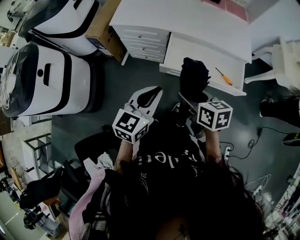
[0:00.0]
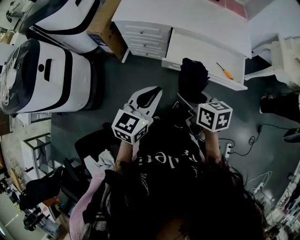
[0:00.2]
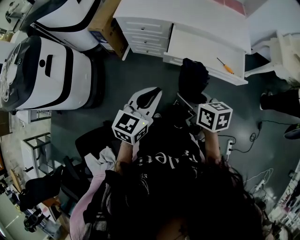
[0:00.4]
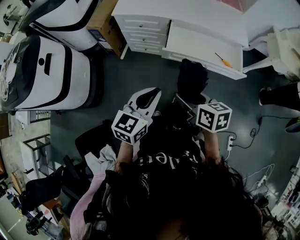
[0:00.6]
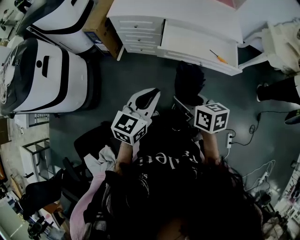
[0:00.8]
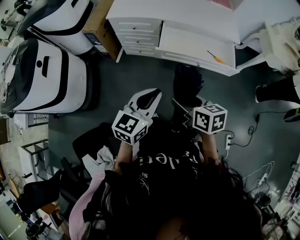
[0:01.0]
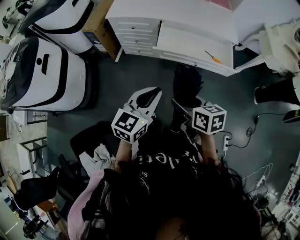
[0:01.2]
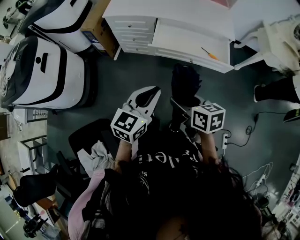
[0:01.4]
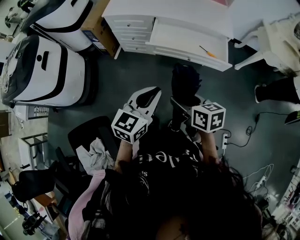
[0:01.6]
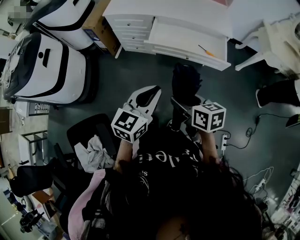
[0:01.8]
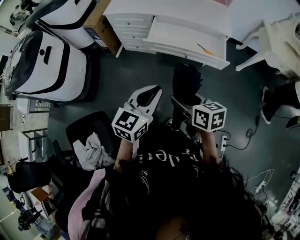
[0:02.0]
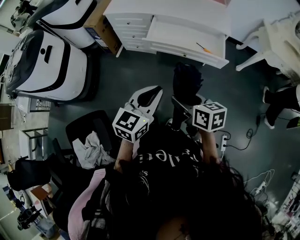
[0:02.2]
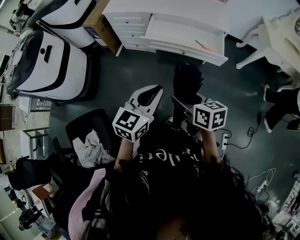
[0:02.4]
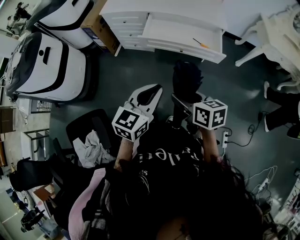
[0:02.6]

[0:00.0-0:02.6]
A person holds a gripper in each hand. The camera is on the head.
0:00.0 to 0:01.2: The grippers both shift backward by approximately 15 cm.
0:01.2 to 0:02.6: The two grippers go some 15 cm to the right and backward.

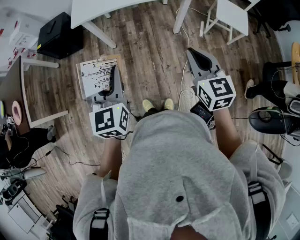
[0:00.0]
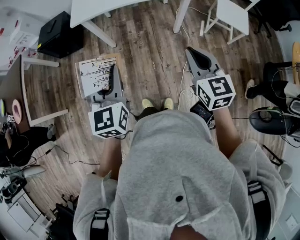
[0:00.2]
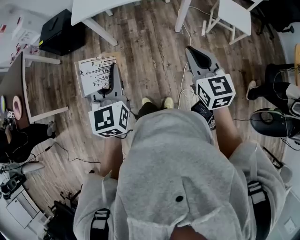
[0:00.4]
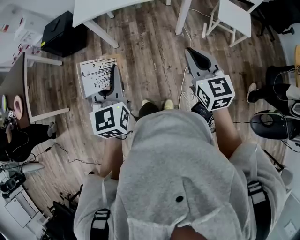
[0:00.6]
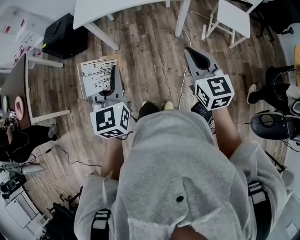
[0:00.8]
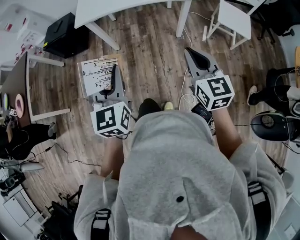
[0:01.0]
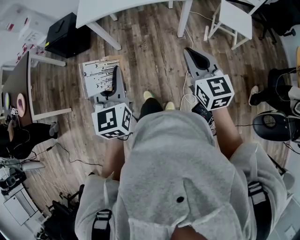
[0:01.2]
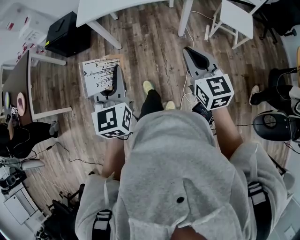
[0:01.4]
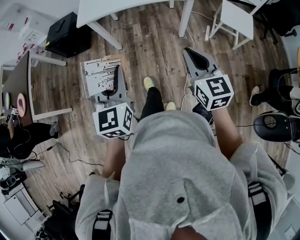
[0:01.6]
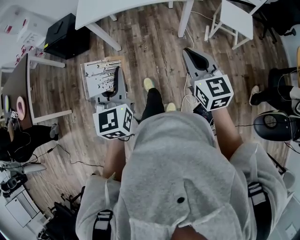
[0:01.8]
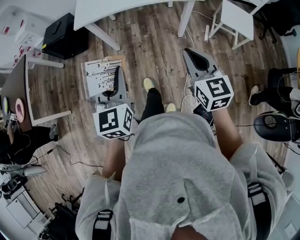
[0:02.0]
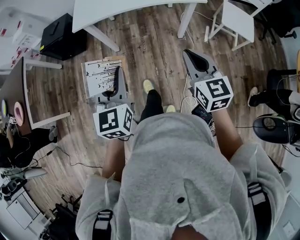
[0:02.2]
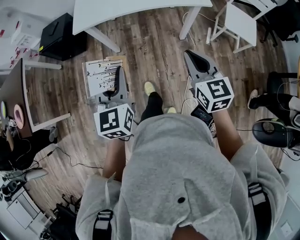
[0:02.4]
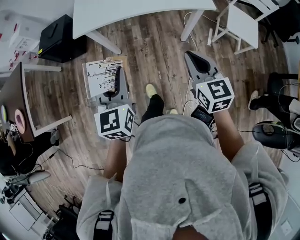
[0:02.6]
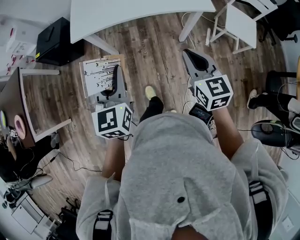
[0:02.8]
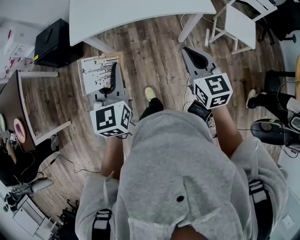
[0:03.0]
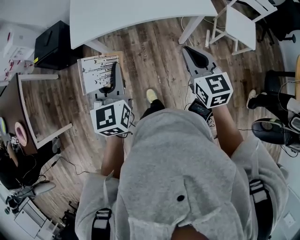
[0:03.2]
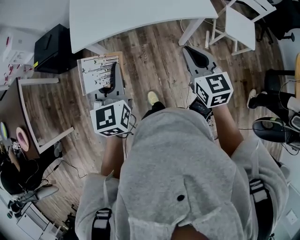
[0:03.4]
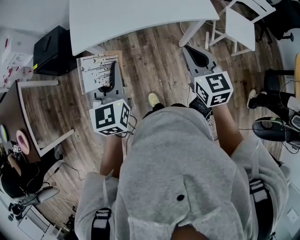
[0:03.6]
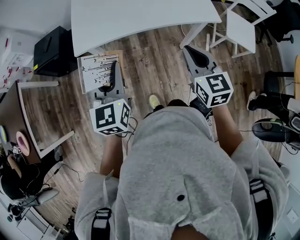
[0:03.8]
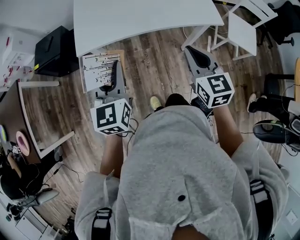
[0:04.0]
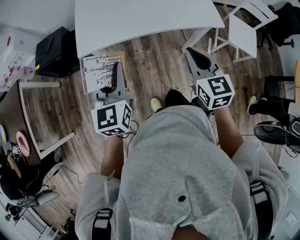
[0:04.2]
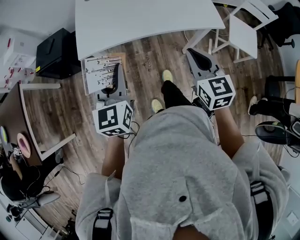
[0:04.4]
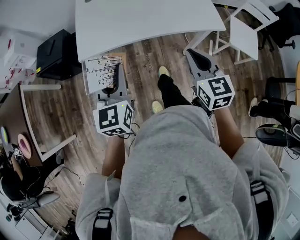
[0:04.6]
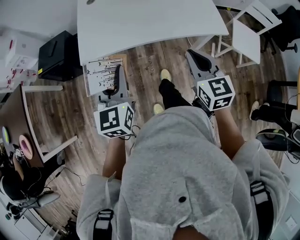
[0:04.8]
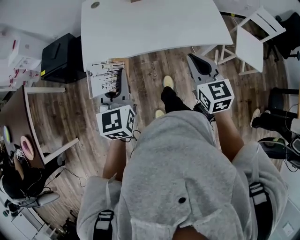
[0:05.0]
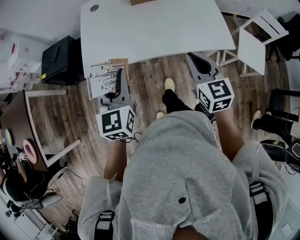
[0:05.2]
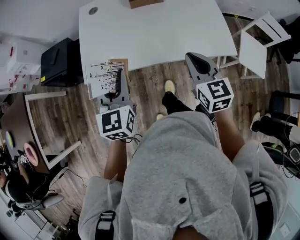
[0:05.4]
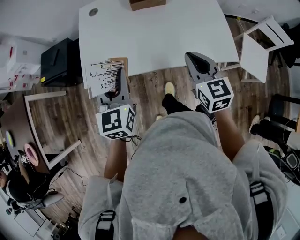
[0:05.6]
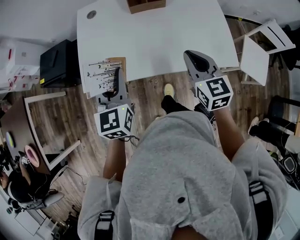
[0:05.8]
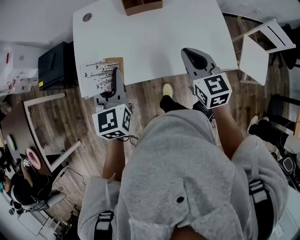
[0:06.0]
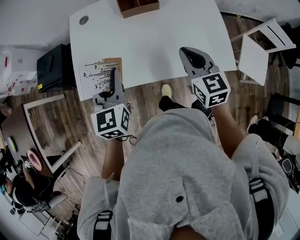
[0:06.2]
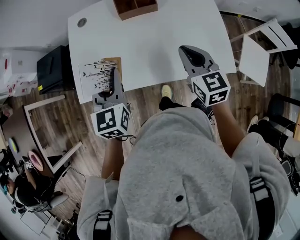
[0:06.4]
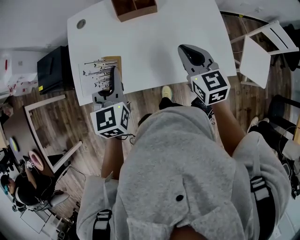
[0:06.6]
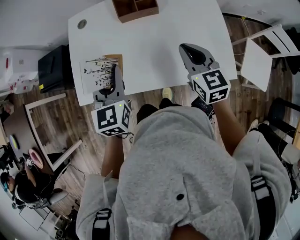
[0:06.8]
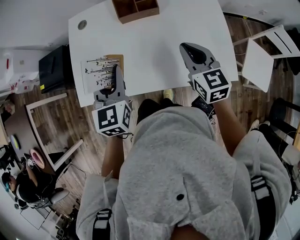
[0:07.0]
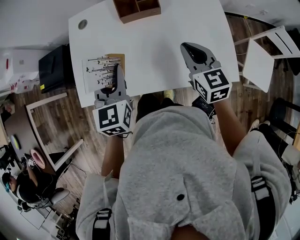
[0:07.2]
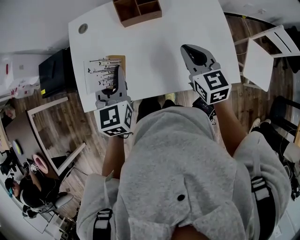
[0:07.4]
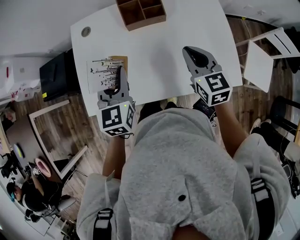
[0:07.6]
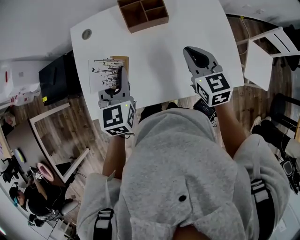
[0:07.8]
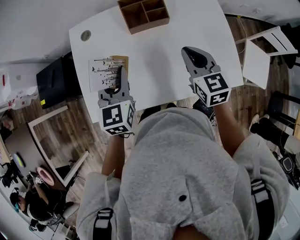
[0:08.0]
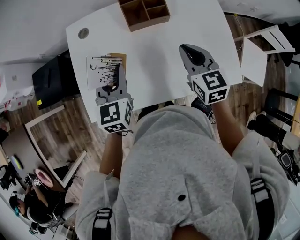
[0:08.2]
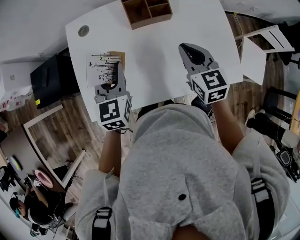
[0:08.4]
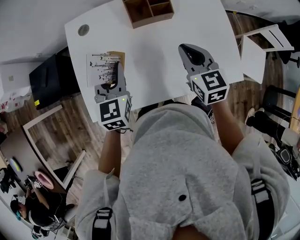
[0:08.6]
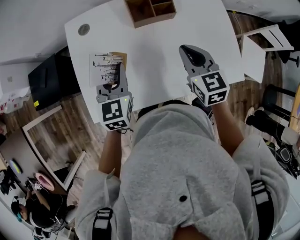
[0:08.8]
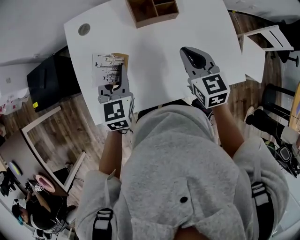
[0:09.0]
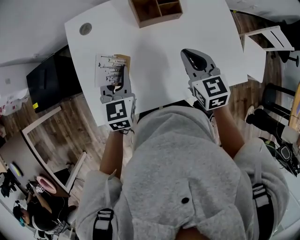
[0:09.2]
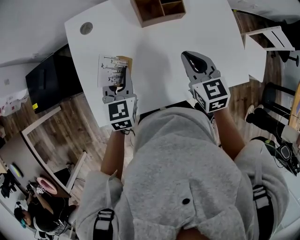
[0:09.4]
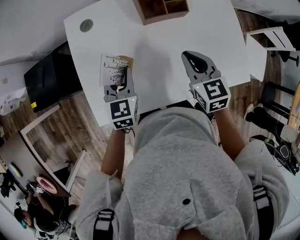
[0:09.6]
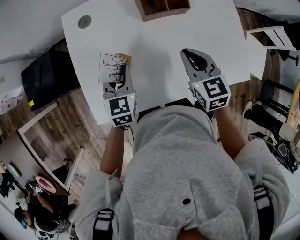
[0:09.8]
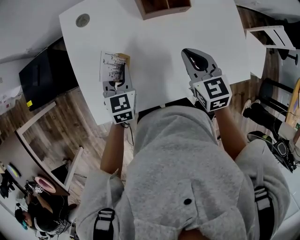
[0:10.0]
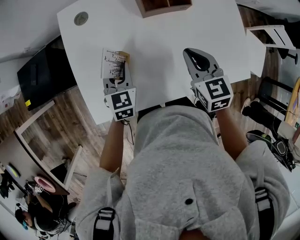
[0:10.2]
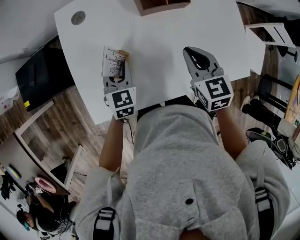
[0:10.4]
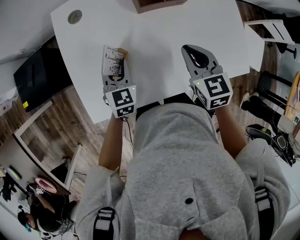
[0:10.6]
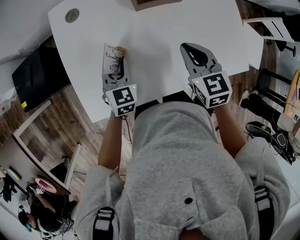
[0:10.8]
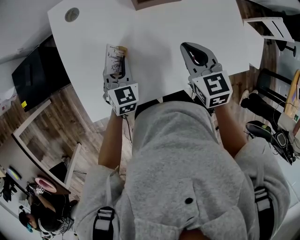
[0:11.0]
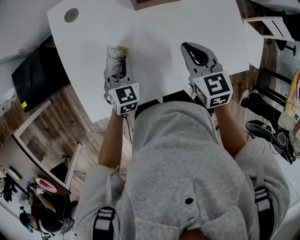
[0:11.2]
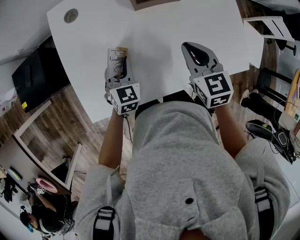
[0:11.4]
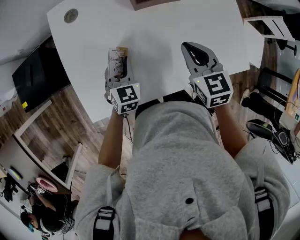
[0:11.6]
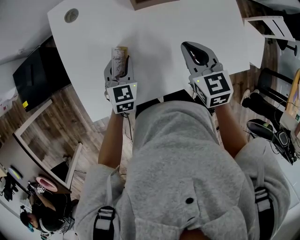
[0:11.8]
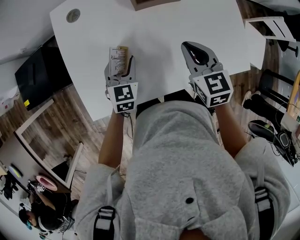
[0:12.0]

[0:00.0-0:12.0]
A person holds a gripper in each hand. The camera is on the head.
0:00.0 to 0:01.6: The left gripper shifts by some 5 cm.
0:01.6 to 0:03.0: The two grippers go approximately 20 cm forward.
0:03.0 to 0:04.4: The left gripper travels forward and to the left by roughly 10 cm. The right gripper shifts approximately 10 cm forward.
0:04.4 to 0:06.0: The grippers both shift forward by roughly 25 cm.
0:06.0 to 0:07.6: The grippers both shift forward by roughly 10 cm.
0:07.6 to 0:09.0: The right gripper is displaced to the left by approximately 10 cm. The left gripper travels to the left and downward by roughly 10 cm.
0:09.0 to 0:10.4: The left gripper goes roughly 10 cm downward. Meanwhile the right gripper ends up about 5 cm from where it was.
0:10.4 to 0:12.0: The left gripper opens its fingers.

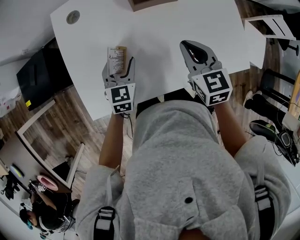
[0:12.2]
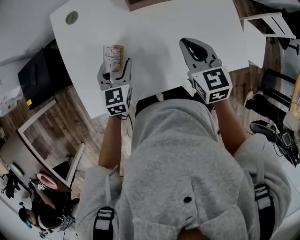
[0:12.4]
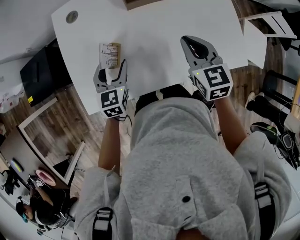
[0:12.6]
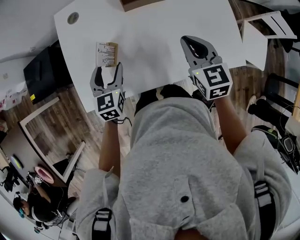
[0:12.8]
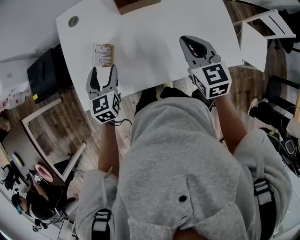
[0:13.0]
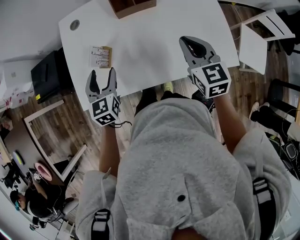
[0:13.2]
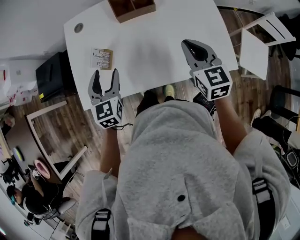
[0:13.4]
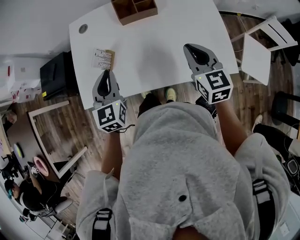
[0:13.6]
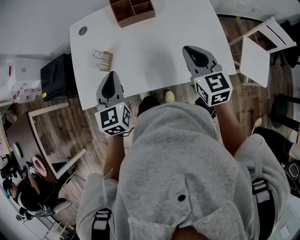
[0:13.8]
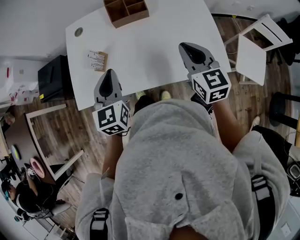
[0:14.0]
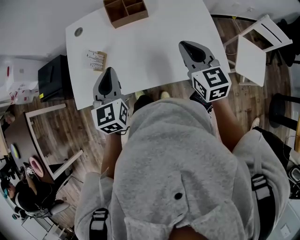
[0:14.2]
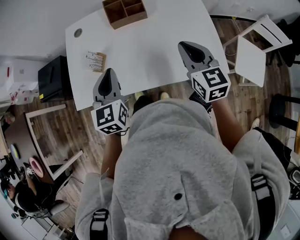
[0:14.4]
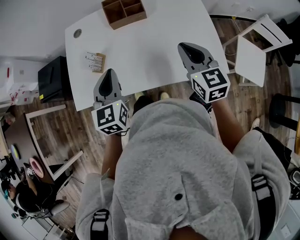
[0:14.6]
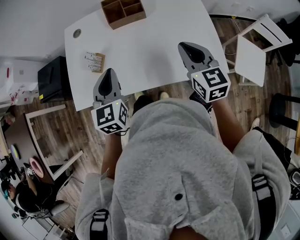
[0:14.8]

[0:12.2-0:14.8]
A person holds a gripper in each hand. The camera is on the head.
0:12.2 to 0:13.4: The right gripper moves to the right, upward and backward, approximately 15 cm. The left gripper heads upward and backward, covering about 15 cm.
0:13.4 to 0:14.8: The left gripper goes roughly 10 cm to the right and upward, and closes its fingers. Meanwhile the right gripper ends up about 5 cm from where it was.

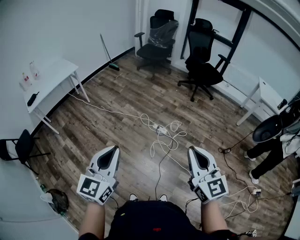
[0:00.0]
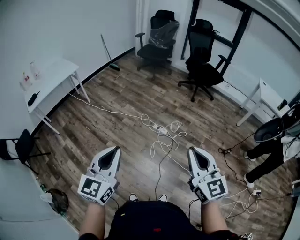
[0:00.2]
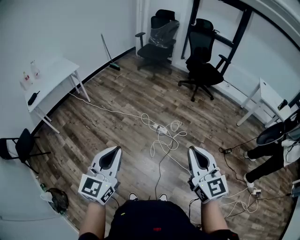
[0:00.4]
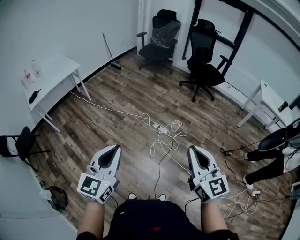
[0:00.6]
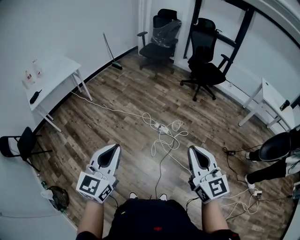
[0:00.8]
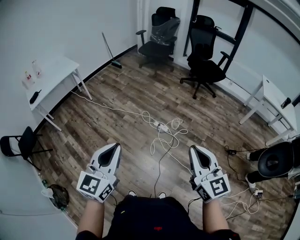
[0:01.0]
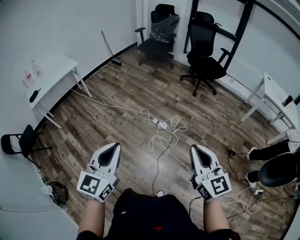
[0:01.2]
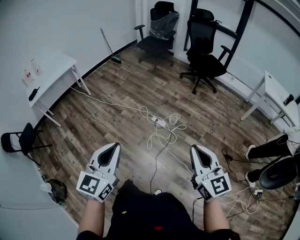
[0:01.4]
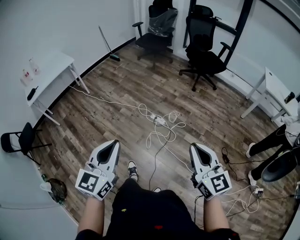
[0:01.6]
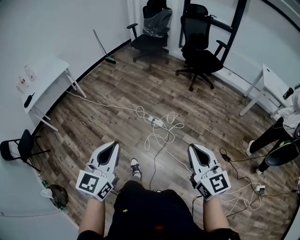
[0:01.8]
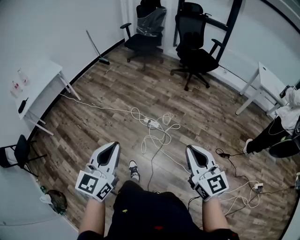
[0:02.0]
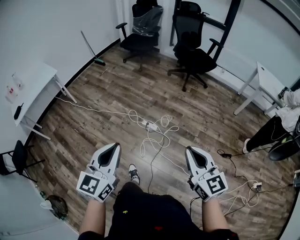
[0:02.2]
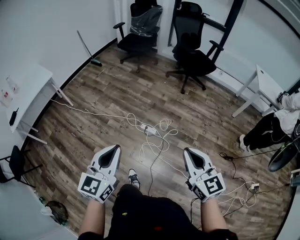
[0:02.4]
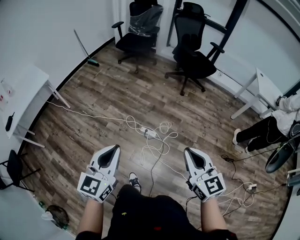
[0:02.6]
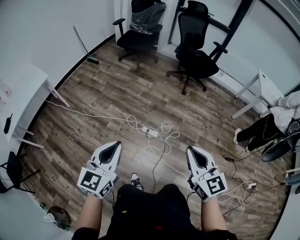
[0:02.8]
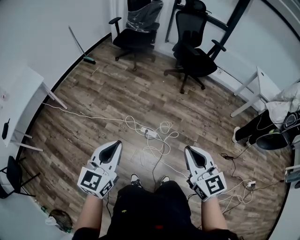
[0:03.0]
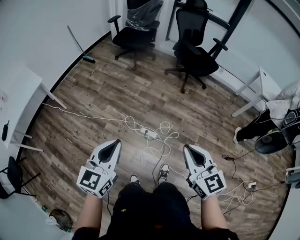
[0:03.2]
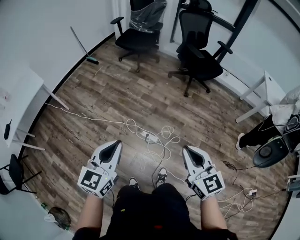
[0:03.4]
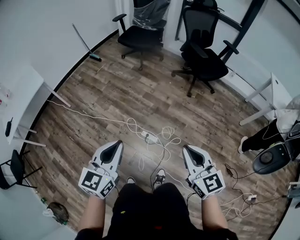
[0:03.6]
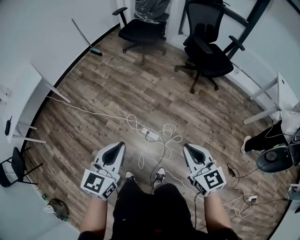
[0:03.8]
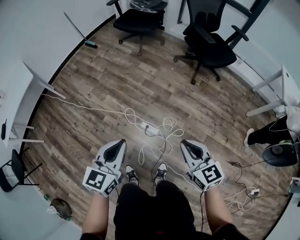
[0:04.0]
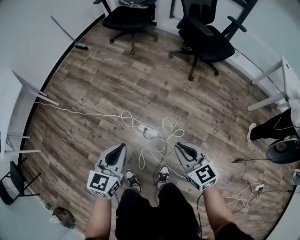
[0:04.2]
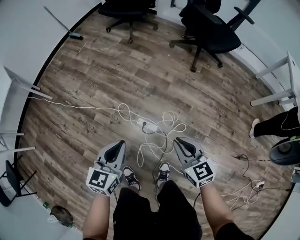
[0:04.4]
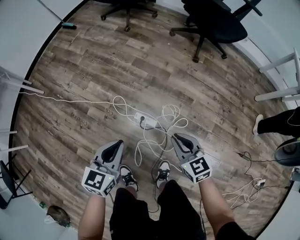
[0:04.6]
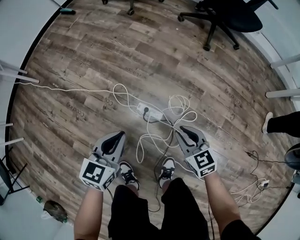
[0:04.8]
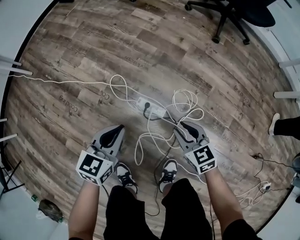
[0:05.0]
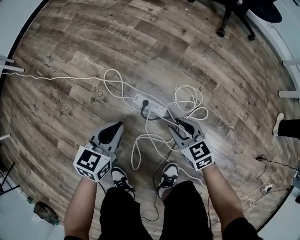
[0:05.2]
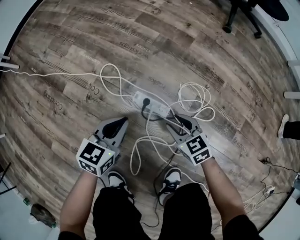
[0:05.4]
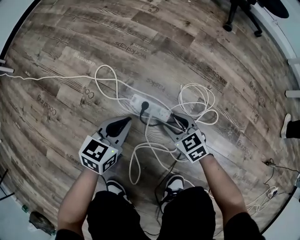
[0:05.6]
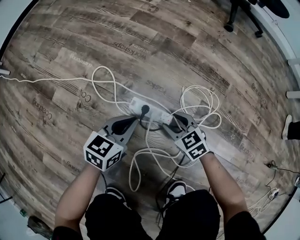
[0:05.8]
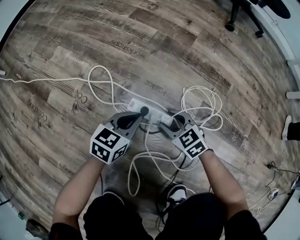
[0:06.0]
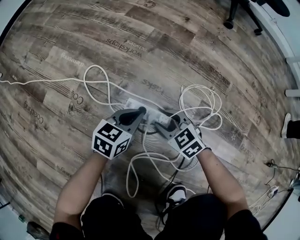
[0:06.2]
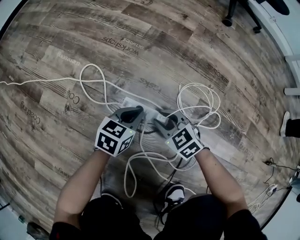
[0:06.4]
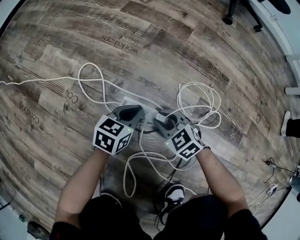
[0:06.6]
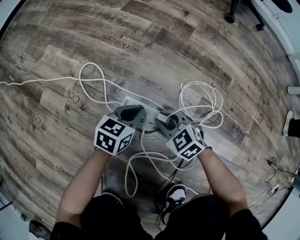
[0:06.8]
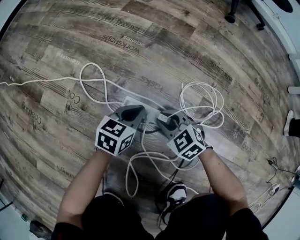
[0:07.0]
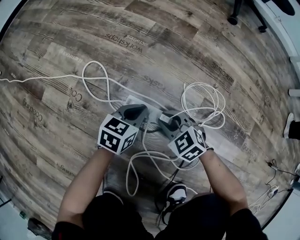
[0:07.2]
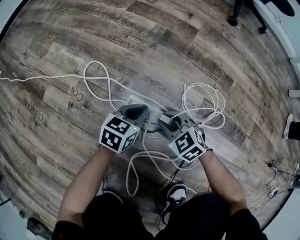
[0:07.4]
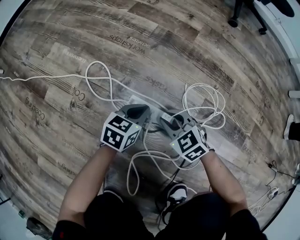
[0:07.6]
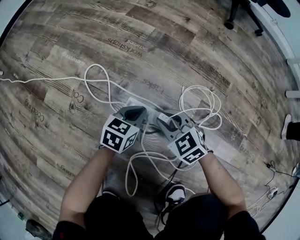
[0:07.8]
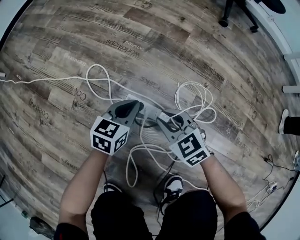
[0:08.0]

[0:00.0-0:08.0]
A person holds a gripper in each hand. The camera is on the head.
0:00.0 to 0:01.6: The grippers both shift to the right by approximately 15 cm.
0:01.6 to 0:03.2: Both grippers travel together forward, roughly 35 cm.
0:03.2 to 0:04.8: Both grippers travel together downward and forward, roughly 60 cm. The left gripper changes its angle by some 20 degrees. The right gripper turns by roughly 30 degrees.
0:04.8 to 0:06.4: The two grippers go approximately 50 cm downward. The left gripper turns by roughly 20 degrees.
0:06.4 to 0:08.0: Both grippers move upward, approximately 10 cm.
